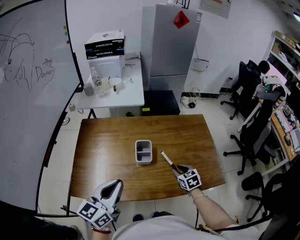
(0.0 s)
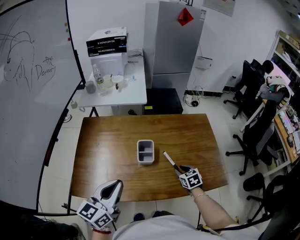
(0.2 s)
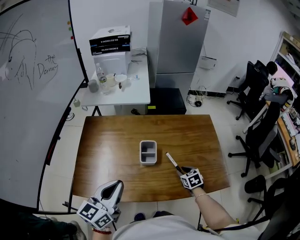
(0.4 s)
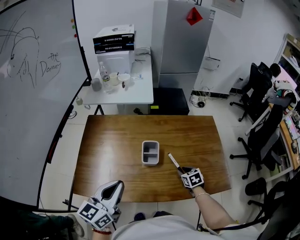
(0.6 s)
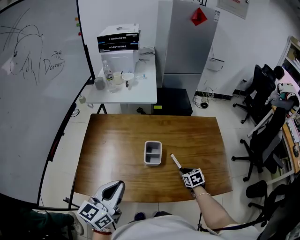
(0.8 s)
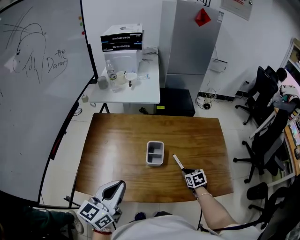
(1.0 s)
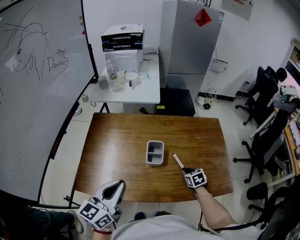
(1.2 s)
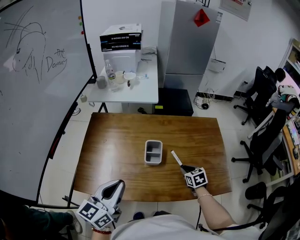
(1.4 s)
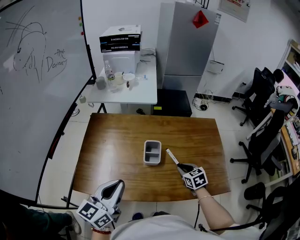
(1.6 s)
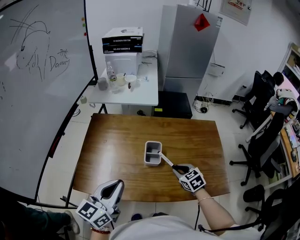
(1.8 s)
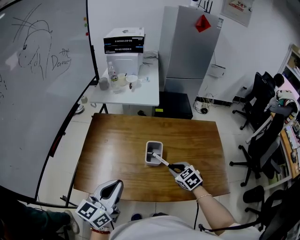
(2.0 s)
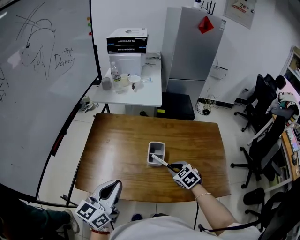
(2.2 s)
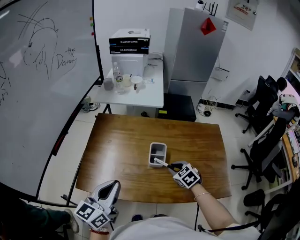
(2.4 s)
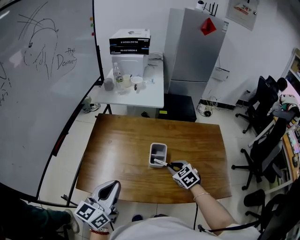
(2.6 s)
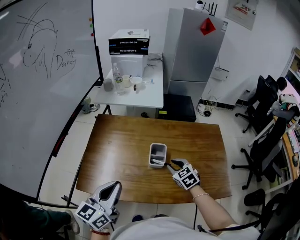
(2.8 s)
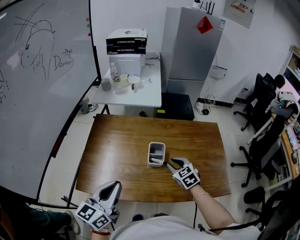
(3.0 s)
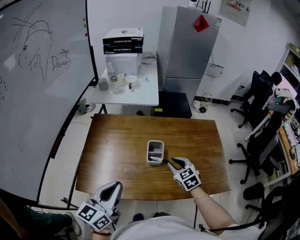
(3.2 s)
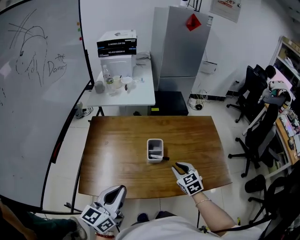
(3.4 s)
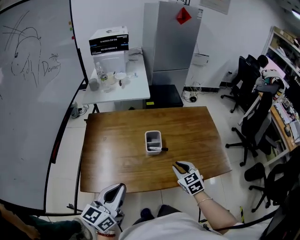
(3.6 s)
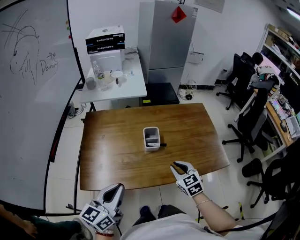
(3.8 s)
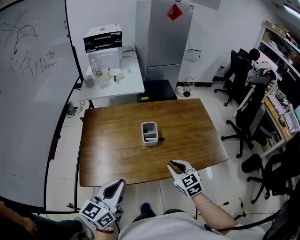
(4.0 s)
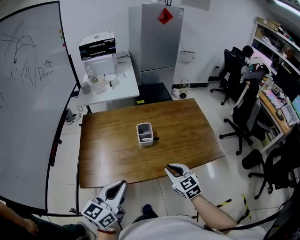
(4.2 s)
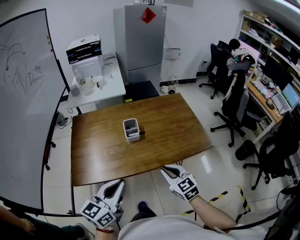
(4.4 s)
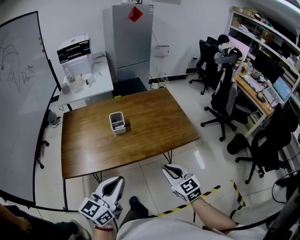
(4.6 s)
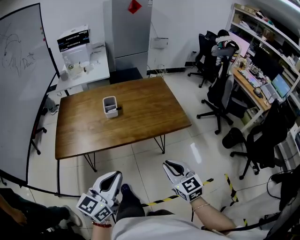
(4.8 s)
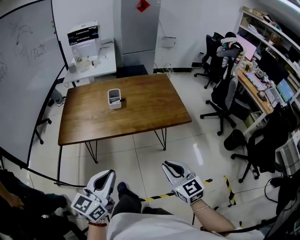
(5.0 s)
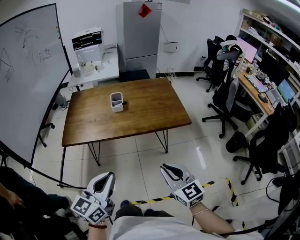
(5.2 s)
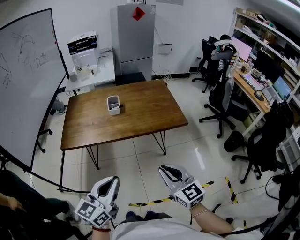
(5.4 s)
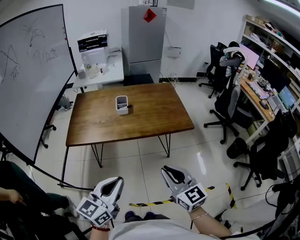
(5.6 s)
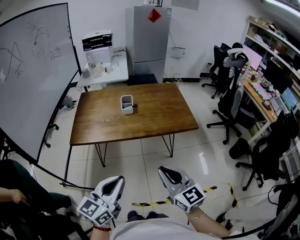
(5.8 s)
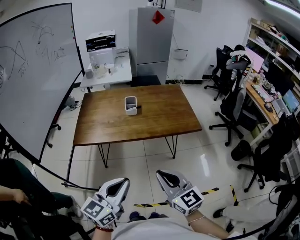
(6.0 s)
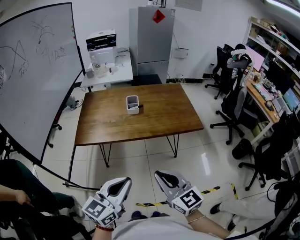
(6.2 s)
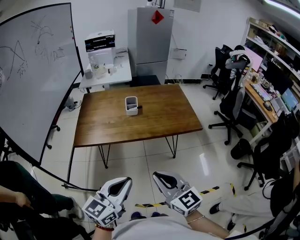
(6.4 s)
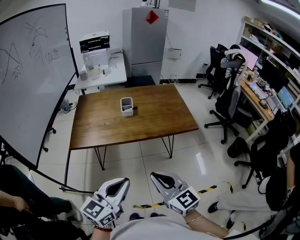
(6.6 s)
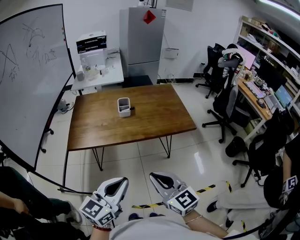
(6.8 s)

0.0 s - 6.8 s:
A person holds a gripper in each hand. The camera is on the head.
1.4 s - 2.8 s: The right gripper goes roughly 15 cm to the left and upward, and changes its angle by roughly 30 degrees.
2.8 s - 4.0 s: The left gripper moves backward, about 10 cm. The right gripper shifts some 15 cm backward.
4.0 s - 5.4 s: Both grippers move backward and to the right, some 40 cm. The right gripper swivels approximately 20 degrees.
5.4 s - 6.8 s: The right gripper shifts about 10 cm to the left.

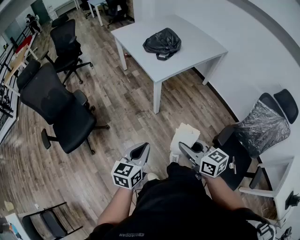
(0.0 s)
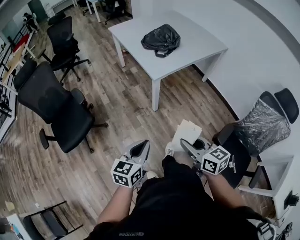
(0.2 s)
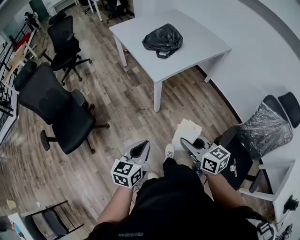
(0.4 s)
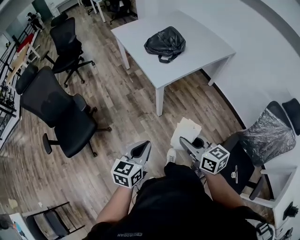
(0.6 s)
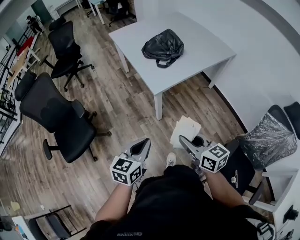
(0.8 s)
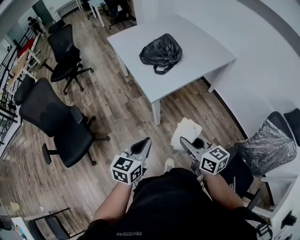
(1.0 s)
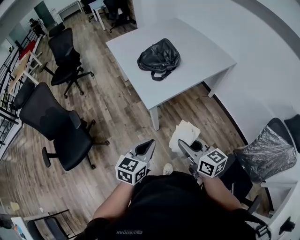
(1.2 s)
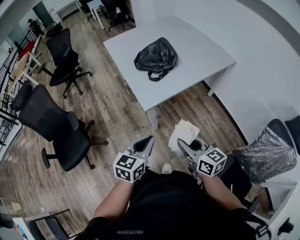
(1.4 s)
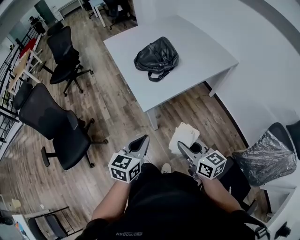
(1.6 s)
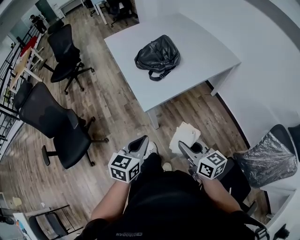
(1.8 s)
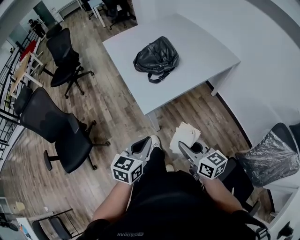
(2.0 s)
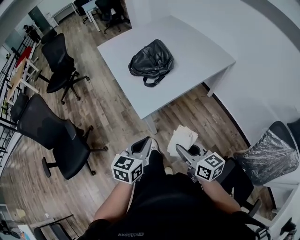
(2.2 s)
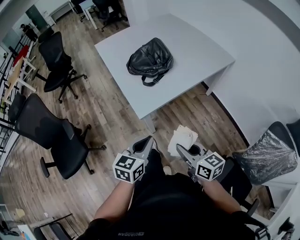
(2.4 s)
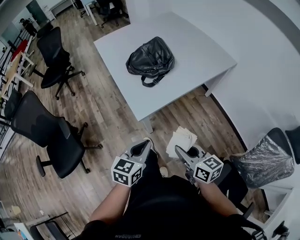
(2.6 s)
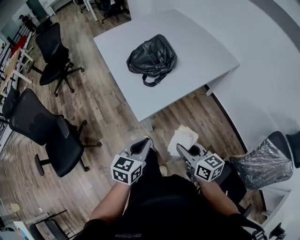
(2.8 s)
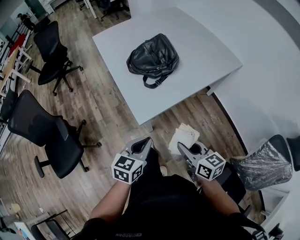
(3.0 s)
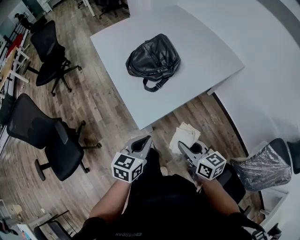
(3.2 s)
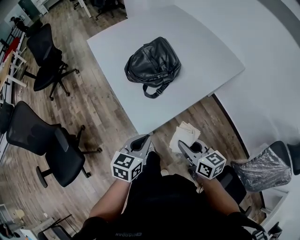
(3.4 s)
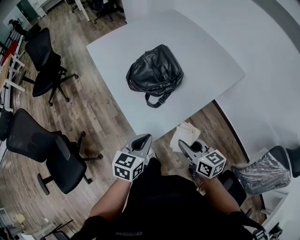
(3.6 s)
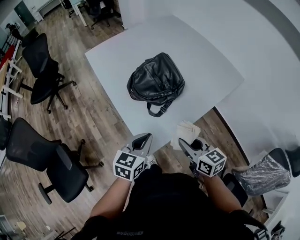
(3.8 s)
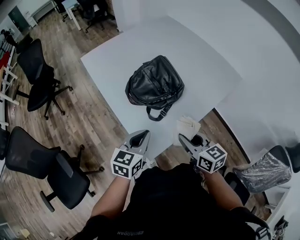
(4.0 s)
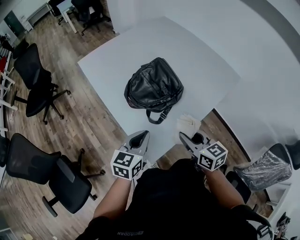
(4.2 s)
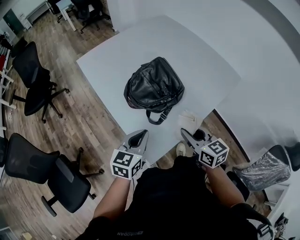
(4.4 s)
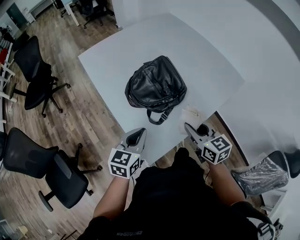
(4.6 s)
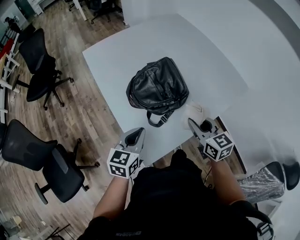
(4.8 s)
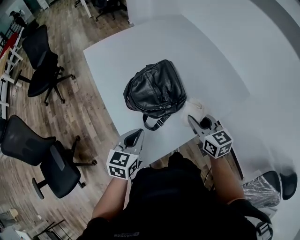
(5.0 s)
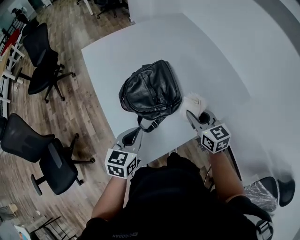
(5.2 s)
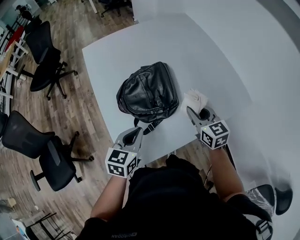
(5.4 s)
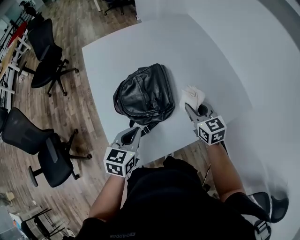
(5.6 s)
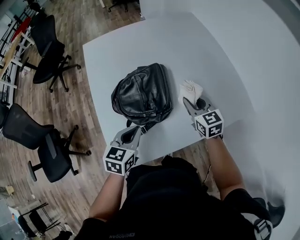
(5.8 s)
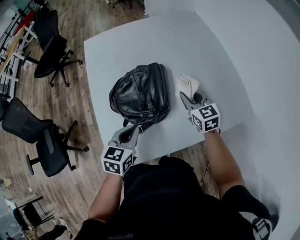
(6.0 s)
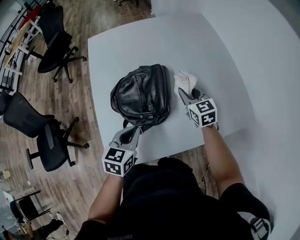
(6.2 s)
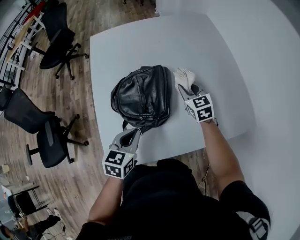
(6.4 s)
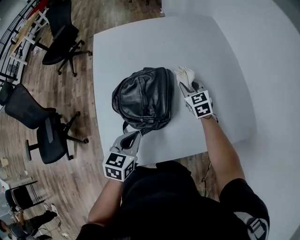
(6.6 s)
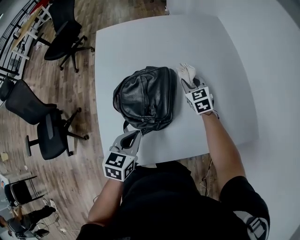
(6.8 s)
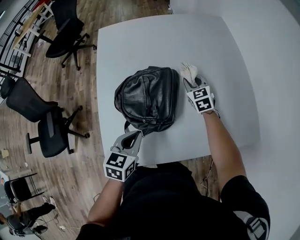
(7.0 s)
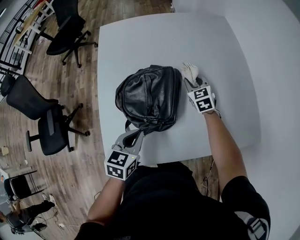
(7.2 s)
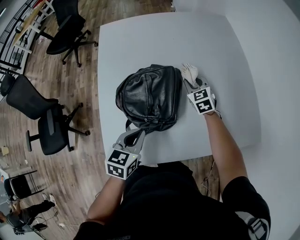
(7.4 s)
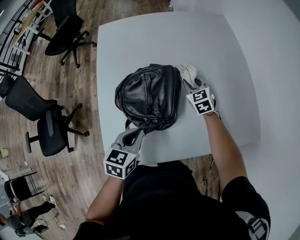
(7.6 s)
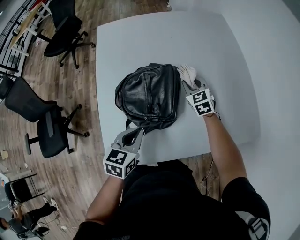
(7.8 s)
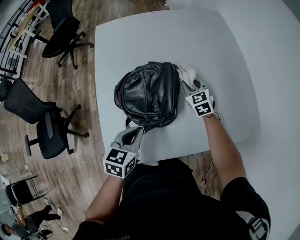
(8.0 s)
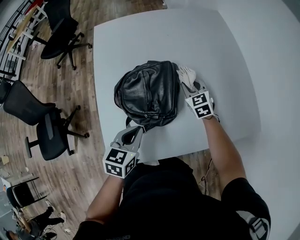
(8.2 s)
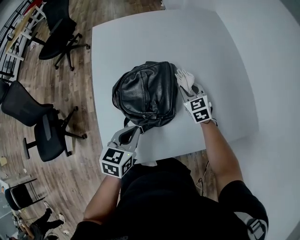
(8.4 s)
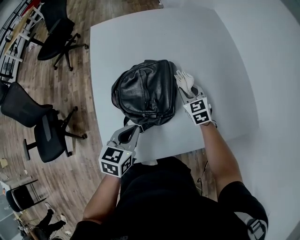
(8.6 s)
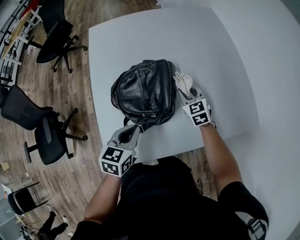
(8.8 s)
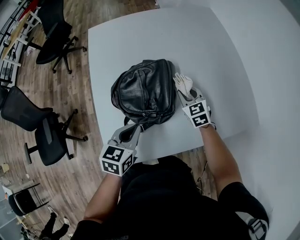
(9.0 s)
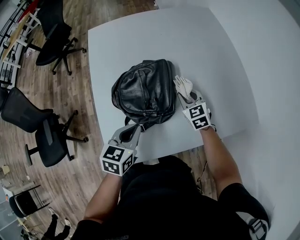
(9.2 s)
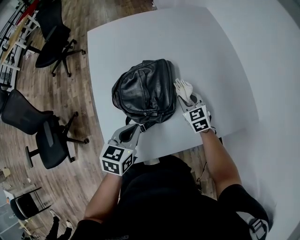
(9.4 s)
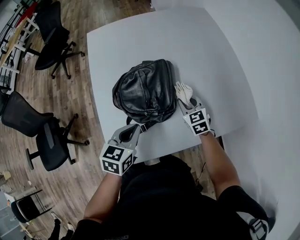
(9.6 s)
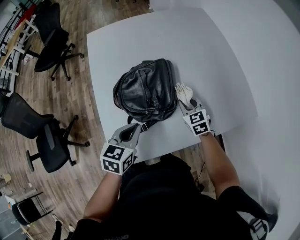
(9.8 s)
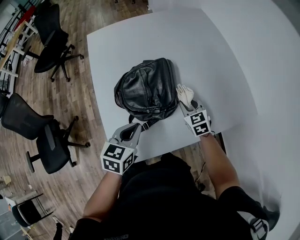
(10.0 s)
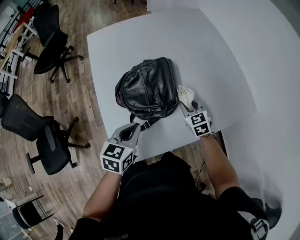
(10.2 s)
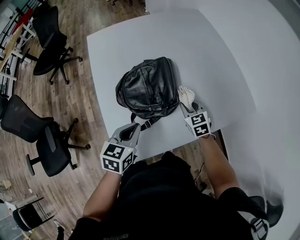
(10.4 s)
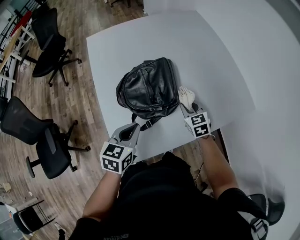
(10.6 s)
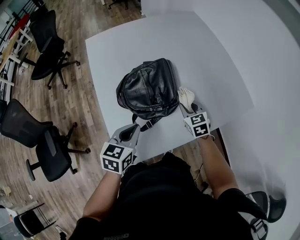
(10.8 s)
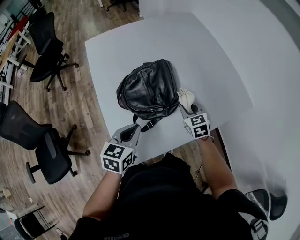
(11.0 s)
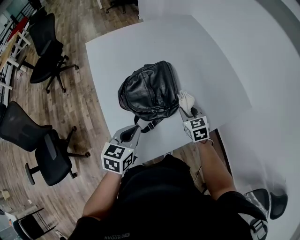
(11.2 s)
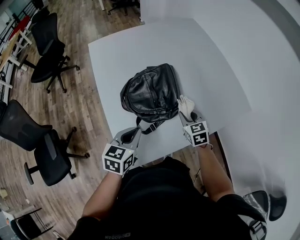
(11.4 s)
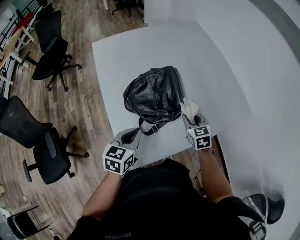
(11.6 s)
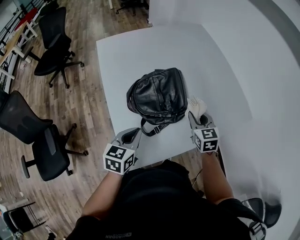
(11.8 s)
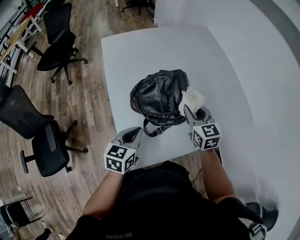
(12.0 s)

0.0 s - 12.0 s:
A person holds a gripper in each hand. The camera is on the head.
0.0 s - 1.6 s: The two grippers go approximately 30 cm forward and to the right.
1.6 s - 3.0 s: The left gripper moves forward and downward, about 15 cm. The right gripper moves forward, some 10 cm.
3.0 s - 4.4 s: The grippers both shift forward by approximately 25 cm.
4.4 s - 6.0 s: The right gripper travels forward and to the right by roughly 30 cm, and changes its angle by some 30 degrees, while the left gripper heads to the right and forward, covering about 15 cm, and changes its angle by approximately 30 degrees.
6.0 s - 7.6 s: The right gripper is displaced forward and downward by about 15 cm, and swivels approximately 20 degrees.
7.6 s - 9.0 s: The right gripper travels backward by some 10 cm.
9.0 s - 10.4 s: The left gripper moves approximately 5 cm. Meanwhile the right gripper travels backward by approximately 10 cm.
10.4 s - 12.0 s: The left gripper travels to the left by roughly 5 cm, while the right gripper is displaced upward and to the left by some 15 cm.

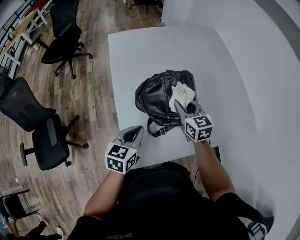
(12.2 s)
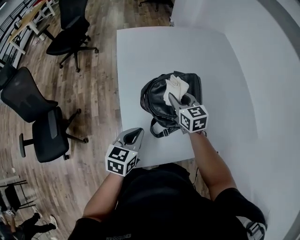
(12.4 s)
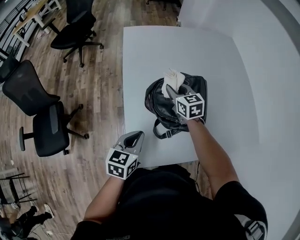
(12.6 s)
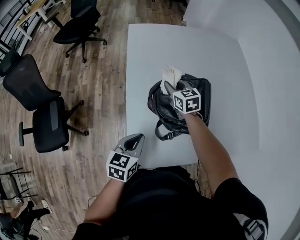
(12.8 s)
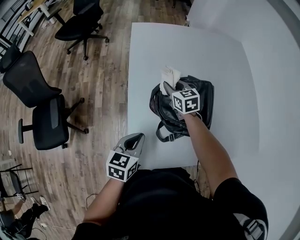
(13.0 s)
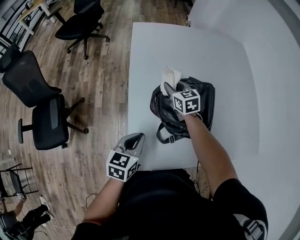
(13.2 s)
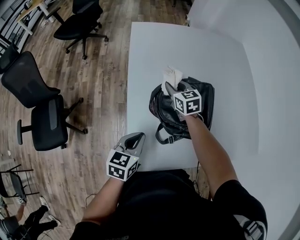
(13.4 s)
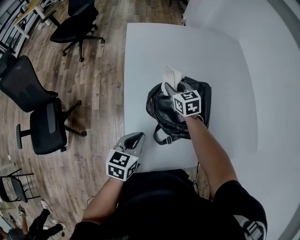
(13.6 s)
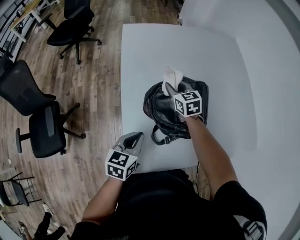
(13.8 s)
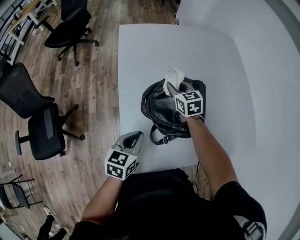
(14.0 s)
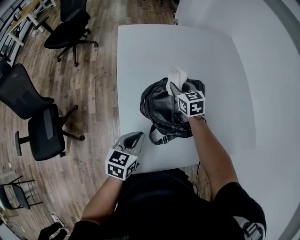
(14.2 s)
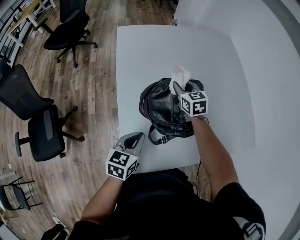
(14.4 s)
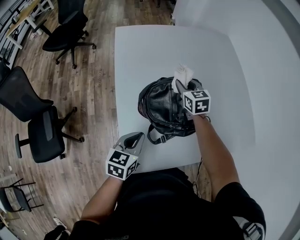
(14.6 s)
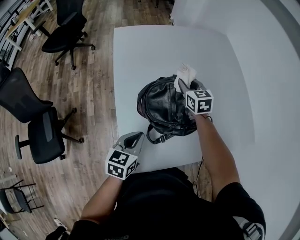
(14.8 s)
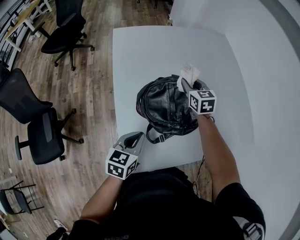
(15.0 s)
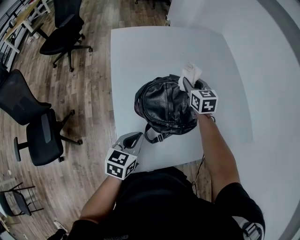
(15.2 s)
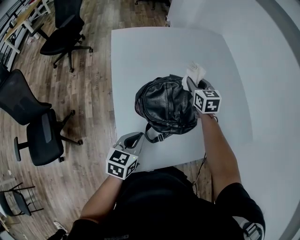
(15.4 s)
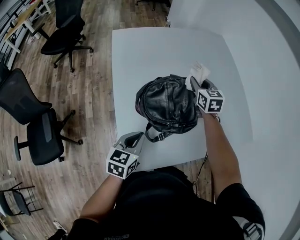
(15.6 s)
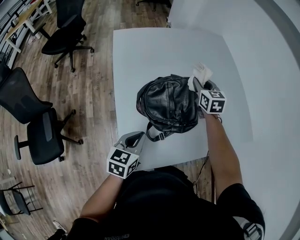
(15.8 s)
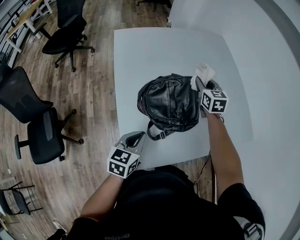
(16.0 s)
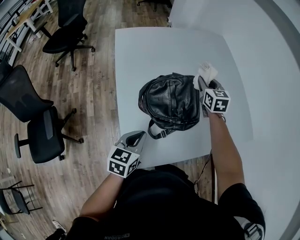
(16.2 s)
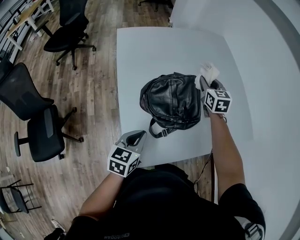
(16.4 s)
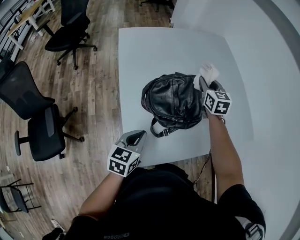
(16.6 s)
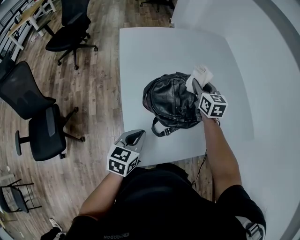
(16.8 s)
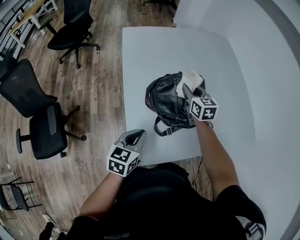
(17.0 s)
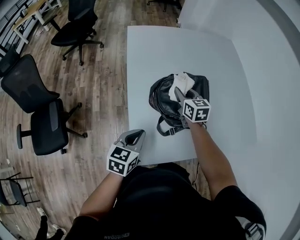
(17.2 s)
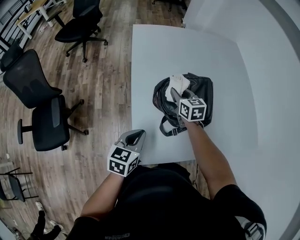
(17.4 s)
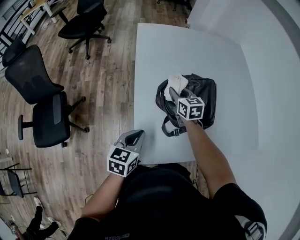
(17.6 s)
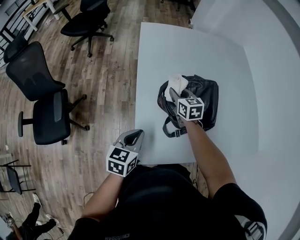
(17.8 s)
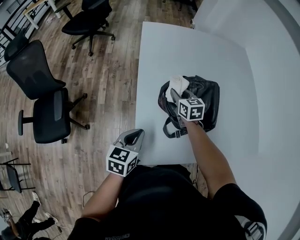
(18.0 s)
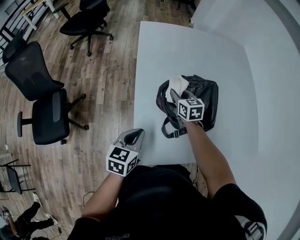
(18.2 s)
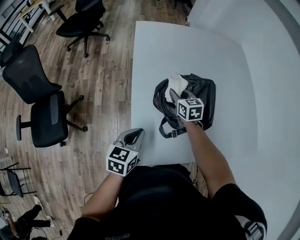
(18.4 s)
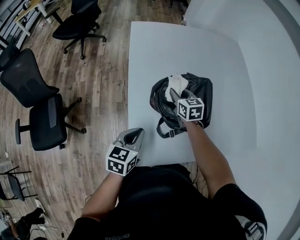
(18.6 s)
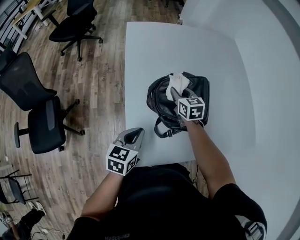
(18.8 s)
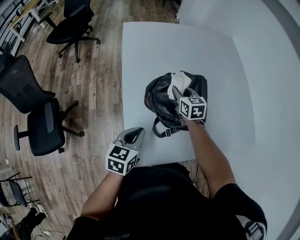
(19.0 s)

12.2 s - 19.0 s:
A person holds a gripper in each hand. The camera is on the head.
12.2 s - 13.6 s: The left gripper changes place by approximately 5 cm; the right gripper shifts approximately 20 cm forward, to the left and downward.
13.6 s - 15.0 s: The right gripper heads to the right and upward, covering about 15 cm.
15.0 s - 16.2 s: The right gripper moves to the right, some 5 cm.
16.2 s - 17.6 s: The left gripper heads to the left, covering some 5 cm. Meanwhile the right gripper goes some 25 cm to the left, backward and downward, and swivels about 20 degrees.
17.6 s - 19.0 s: The right gripper is displaced to the right by about 5 cm. The left gripper moves some 5 cm.